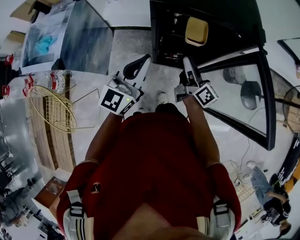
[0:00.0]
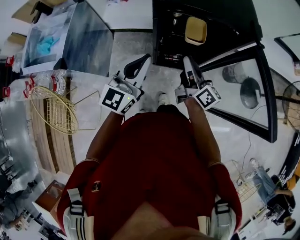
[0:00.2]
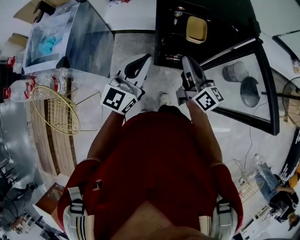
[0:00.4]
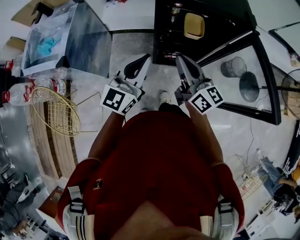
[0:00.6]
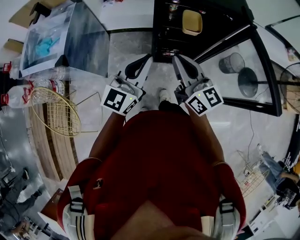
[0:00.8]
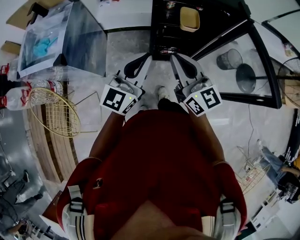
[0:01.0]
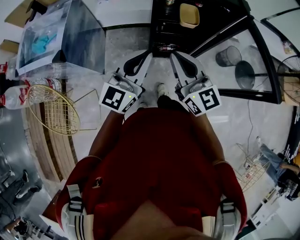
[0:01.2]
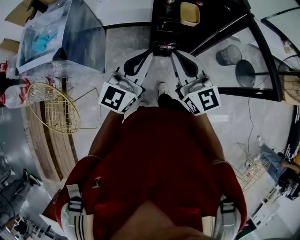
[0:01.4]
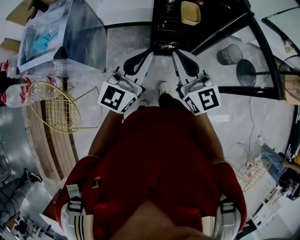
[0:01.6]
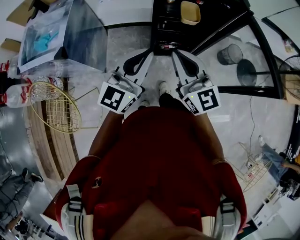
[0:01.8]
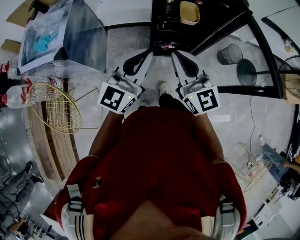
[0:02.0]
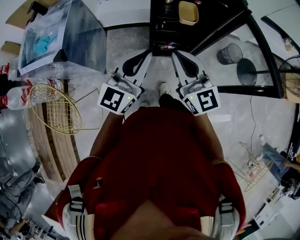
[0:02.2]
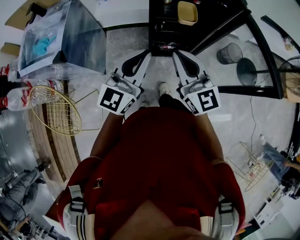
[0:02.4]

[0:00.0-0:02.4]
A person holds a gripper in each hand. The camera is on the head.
0:00.0 to 0:01.2: The right gripper heads backward, upward and to the left, covering some 25 cm, rolls counterclockwise, seen from behind, by approximately 50 degrees, and closes. The left gripper moves backward, about 10 cm.
0:01.2 to 0:02.4: The grippers move only a little.

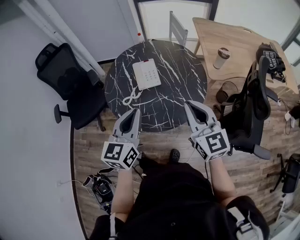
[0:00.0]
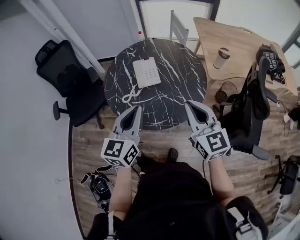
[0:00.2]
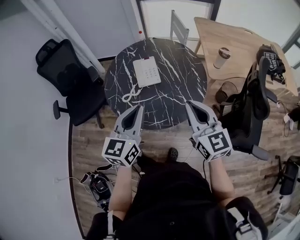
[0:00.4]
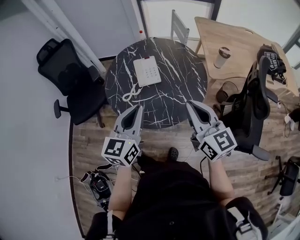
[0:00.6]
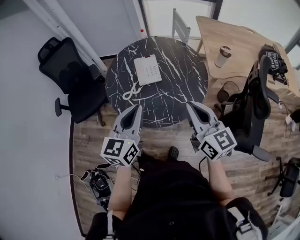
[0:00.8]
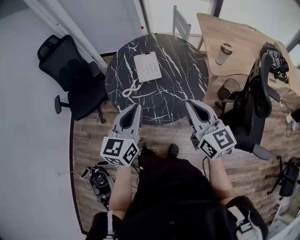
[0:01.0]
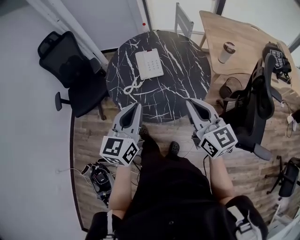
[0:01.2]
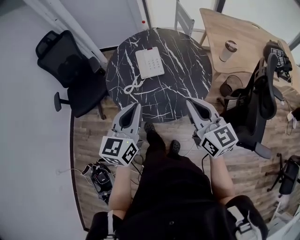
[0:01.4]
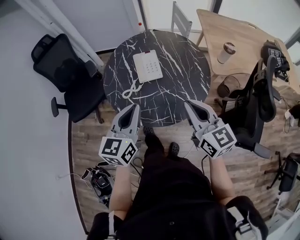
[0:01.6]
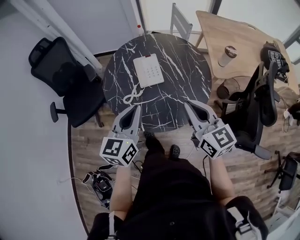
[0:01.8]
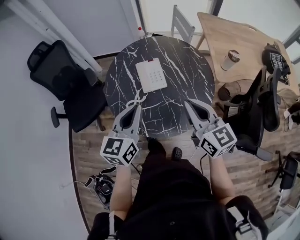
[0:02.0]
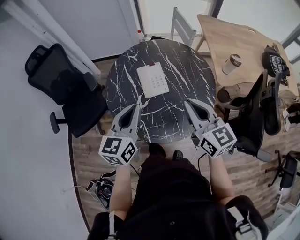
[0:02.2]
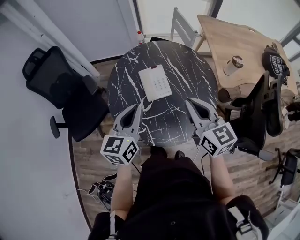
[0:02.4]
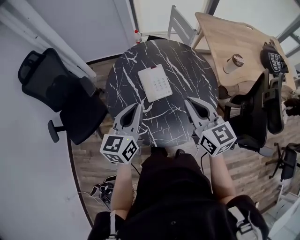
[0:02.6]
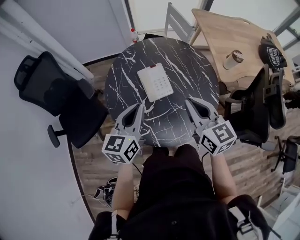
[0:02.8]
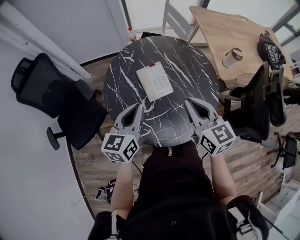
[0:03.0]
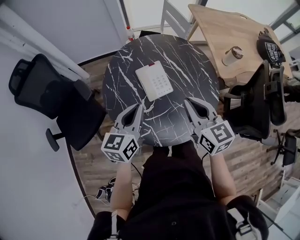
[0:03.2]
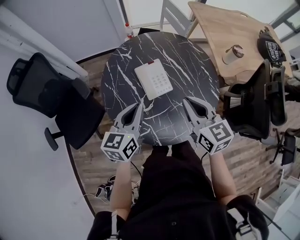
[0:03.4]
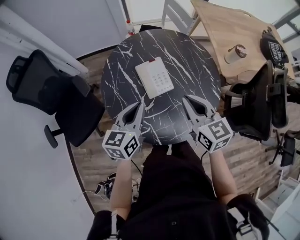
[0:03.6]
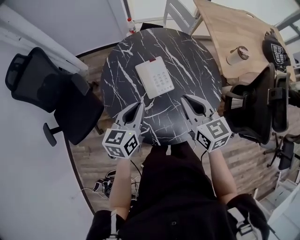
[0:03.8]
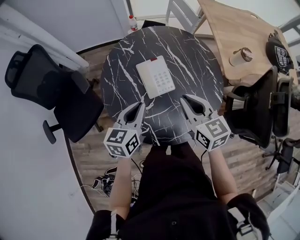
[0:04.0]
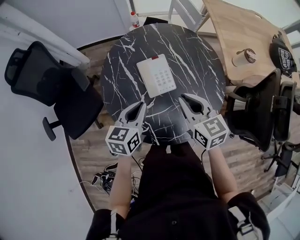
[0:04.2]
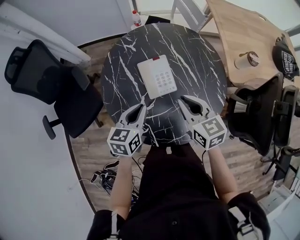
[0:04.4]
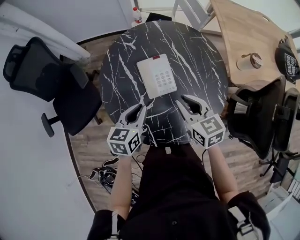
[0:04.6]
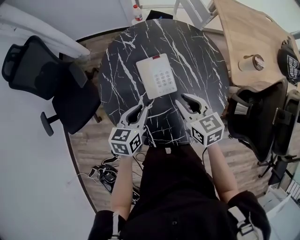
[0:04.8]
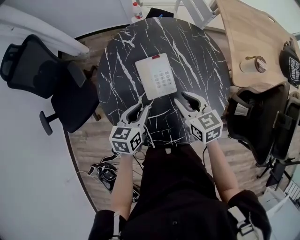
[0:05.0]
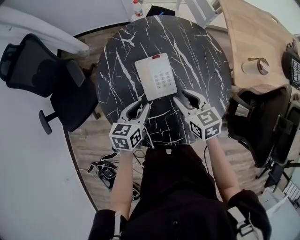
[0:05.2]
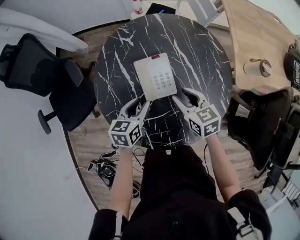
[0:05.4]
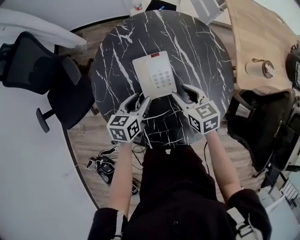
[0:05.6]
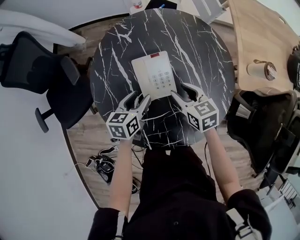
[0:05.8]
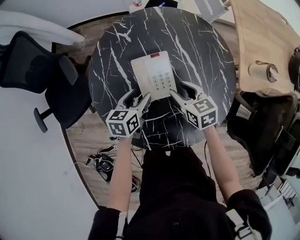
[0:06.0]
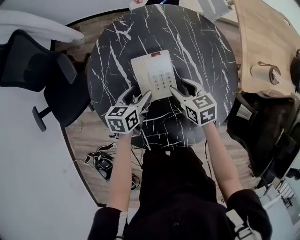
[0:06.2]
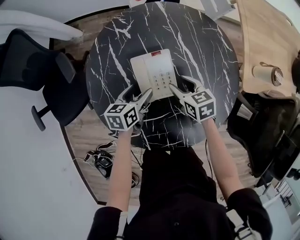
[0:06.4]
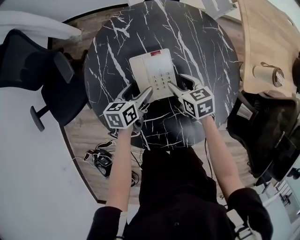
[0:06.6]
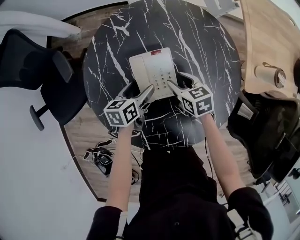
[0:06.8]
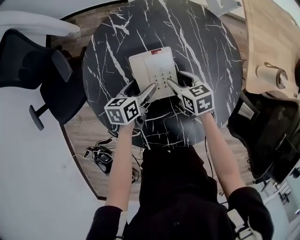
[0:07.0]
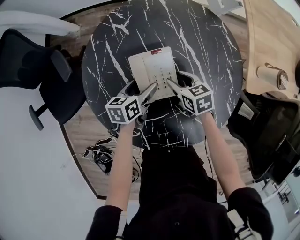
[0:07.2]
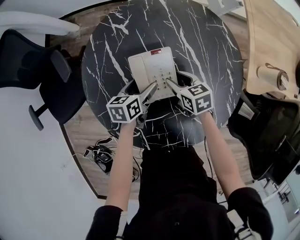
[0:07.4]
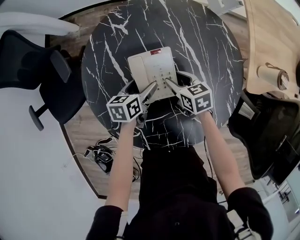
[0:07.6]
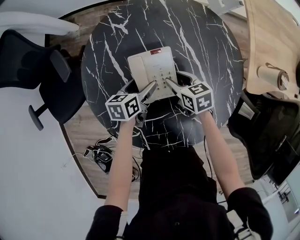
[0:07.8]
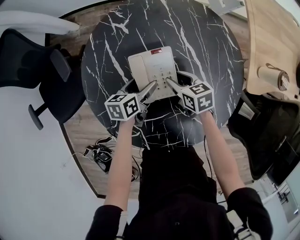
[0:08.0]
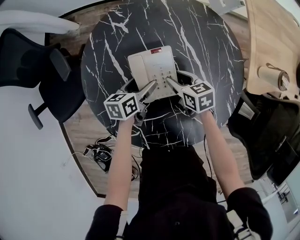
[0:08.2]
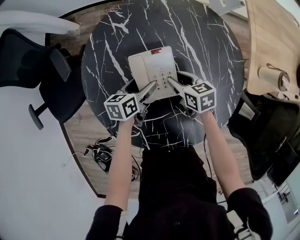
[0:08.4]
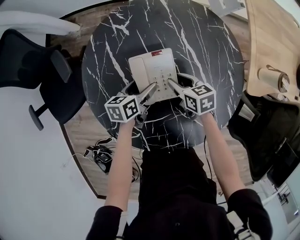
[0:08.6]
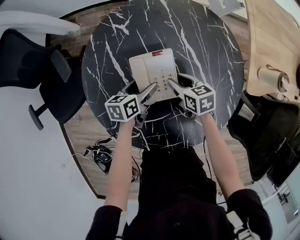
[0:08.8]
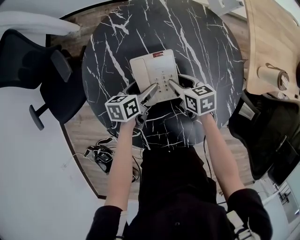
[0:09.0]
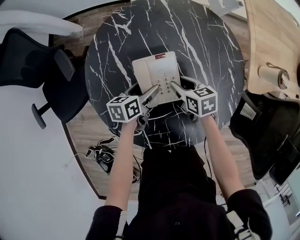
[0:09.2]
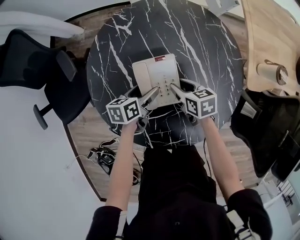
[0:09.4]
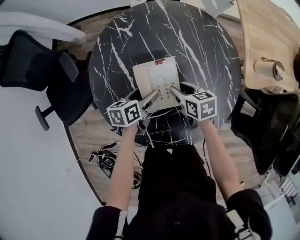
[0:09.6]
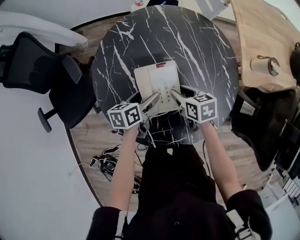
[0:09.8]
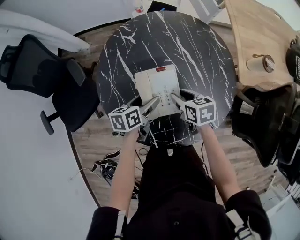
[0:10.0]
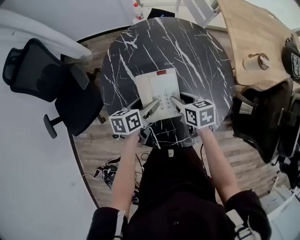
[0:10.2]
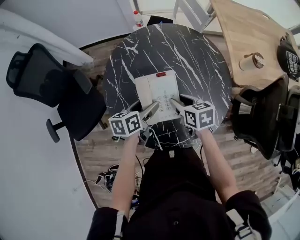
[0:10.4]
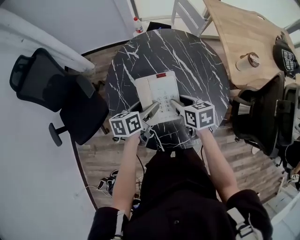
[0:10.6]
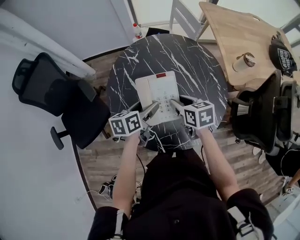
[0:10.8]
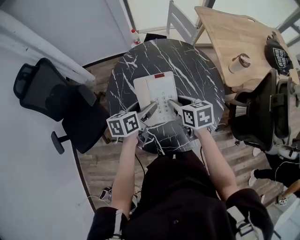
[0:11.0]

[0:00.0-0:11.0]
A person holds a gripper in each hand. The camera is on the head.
0:00.0 to 0:01.6: There are only small adjustments of the grippers.
0:01.6 to 0:03.2: Both grippers travel together forward and to the left, about 20 cm.
0:03.2 to 0:04.8: The right gripper shifts approximately 15 cm downward and forward, and swivels about 20 degrees. Meanwhile the left gripper moves downward, roughly 15 cm, and changes its angle by some 20 degrees.
0:04.8 to 0:06.2: The grippers both shift downward and forward by approximately 15 cm. The right gripper opens up. The left gripper opens its fingers.
0:06.2 to 0:07.8: The two grippers go about 5 cm downward.
0:07.8 to 0:09.4: The grippers make only small movements.
0:09.4 to 0:11.0: Both grippers travel together upward, about 20 cm.

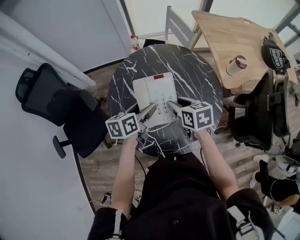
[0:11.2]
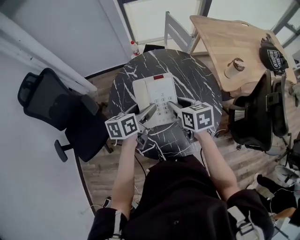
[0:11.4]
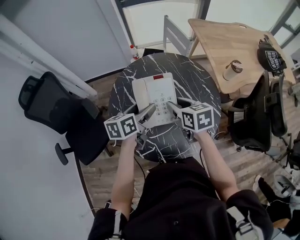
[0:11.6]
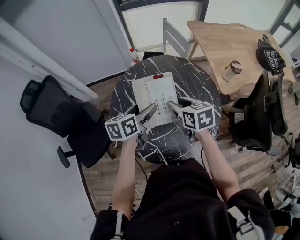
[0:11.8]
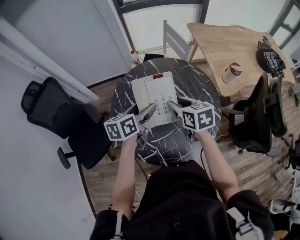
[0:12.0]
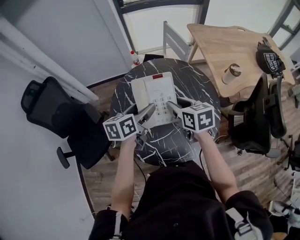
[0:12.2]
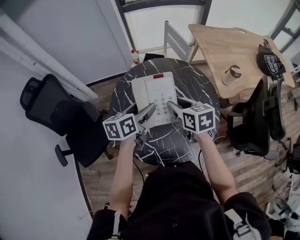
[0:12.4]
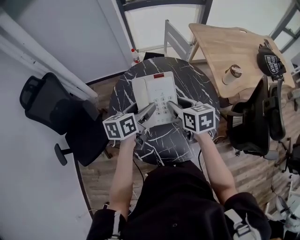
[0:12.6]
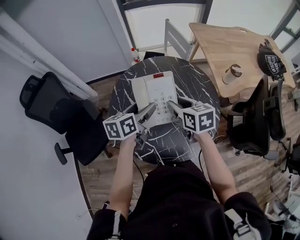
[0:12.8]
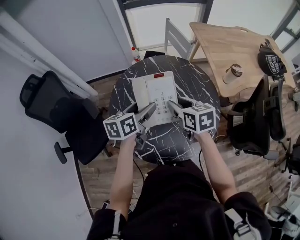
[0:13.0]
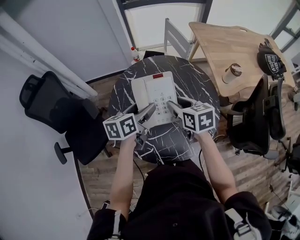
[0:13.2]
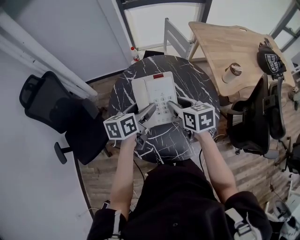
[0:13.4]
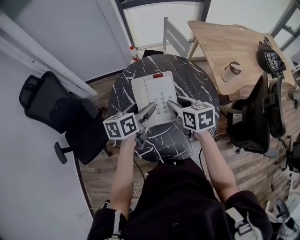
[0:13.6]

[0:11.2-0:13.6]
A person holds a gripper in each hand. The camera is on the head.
0:11.2 to 0:12.4: Both grippers travel together upward, about 5 cm.
0:12.4 to 0:13.6: The grippers move only a little.

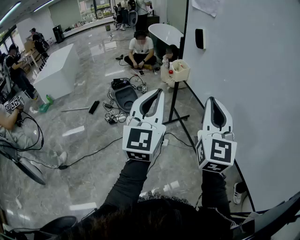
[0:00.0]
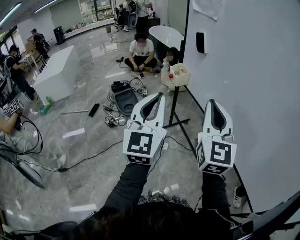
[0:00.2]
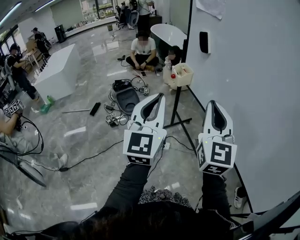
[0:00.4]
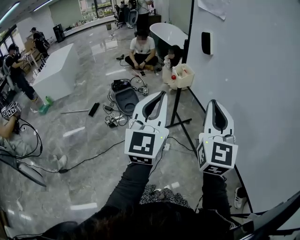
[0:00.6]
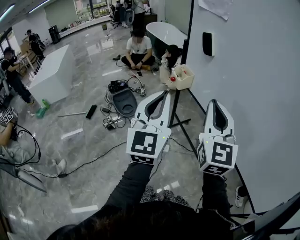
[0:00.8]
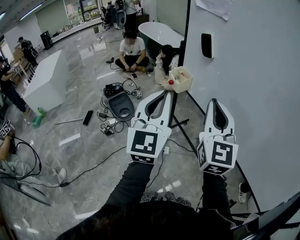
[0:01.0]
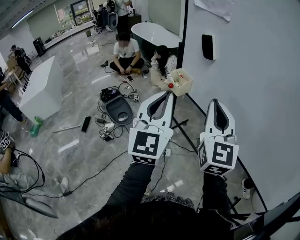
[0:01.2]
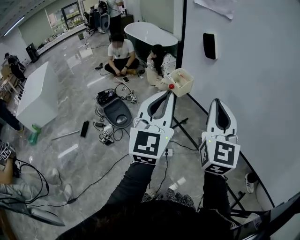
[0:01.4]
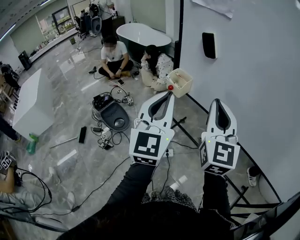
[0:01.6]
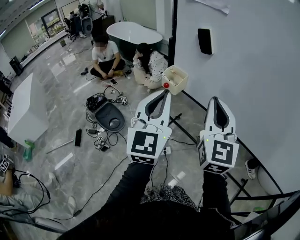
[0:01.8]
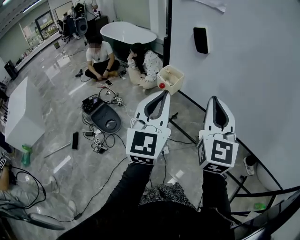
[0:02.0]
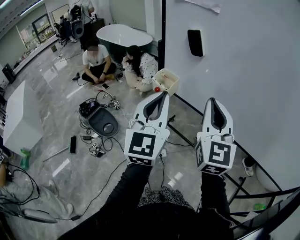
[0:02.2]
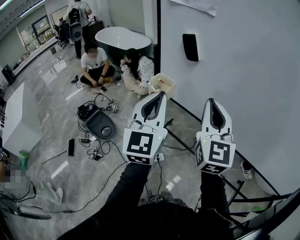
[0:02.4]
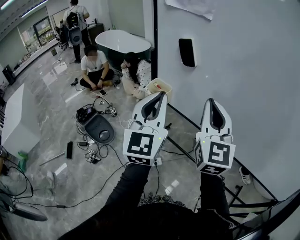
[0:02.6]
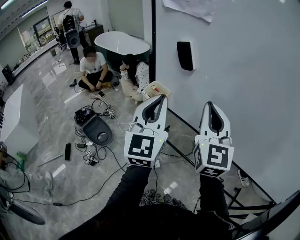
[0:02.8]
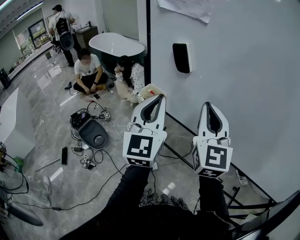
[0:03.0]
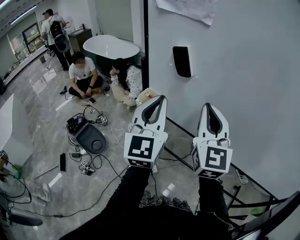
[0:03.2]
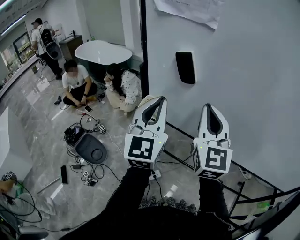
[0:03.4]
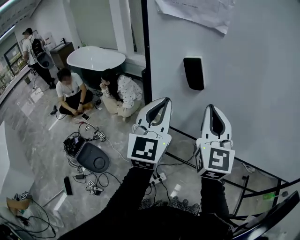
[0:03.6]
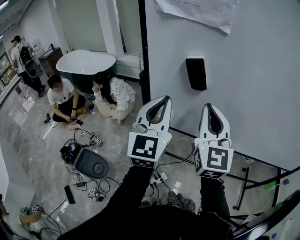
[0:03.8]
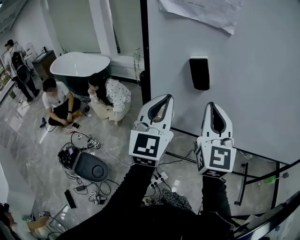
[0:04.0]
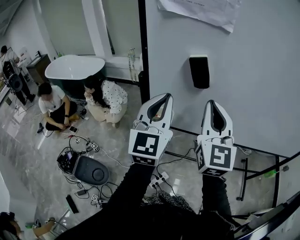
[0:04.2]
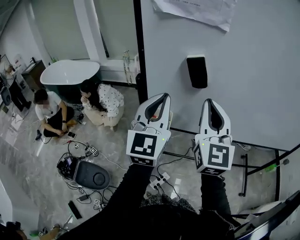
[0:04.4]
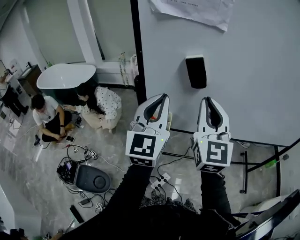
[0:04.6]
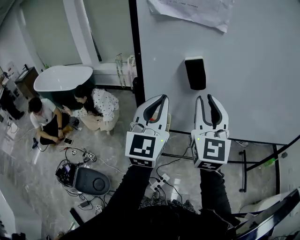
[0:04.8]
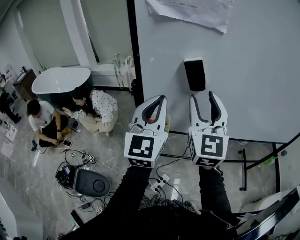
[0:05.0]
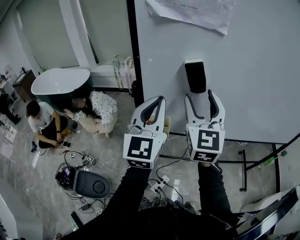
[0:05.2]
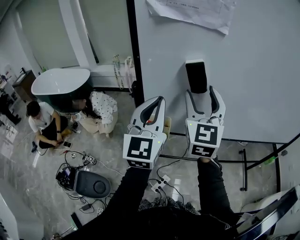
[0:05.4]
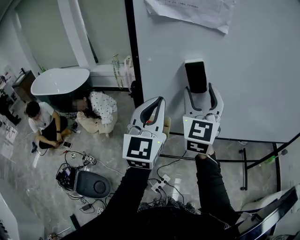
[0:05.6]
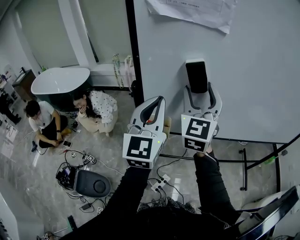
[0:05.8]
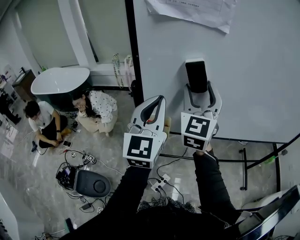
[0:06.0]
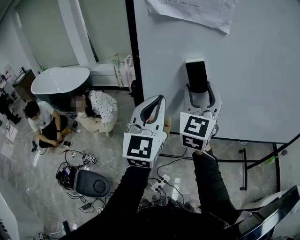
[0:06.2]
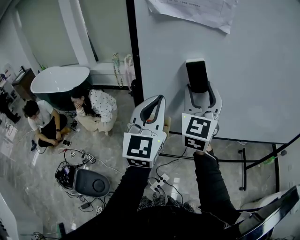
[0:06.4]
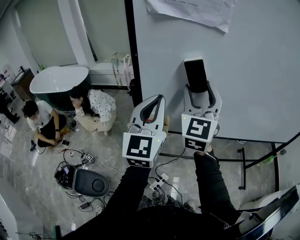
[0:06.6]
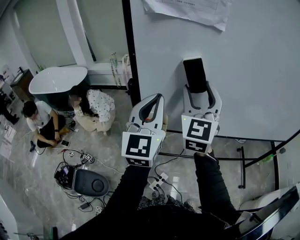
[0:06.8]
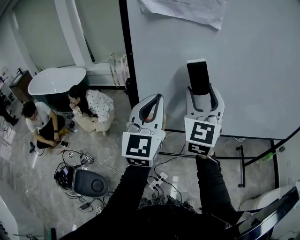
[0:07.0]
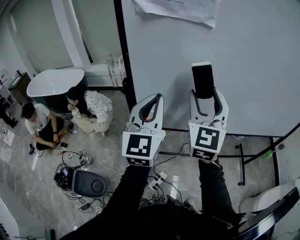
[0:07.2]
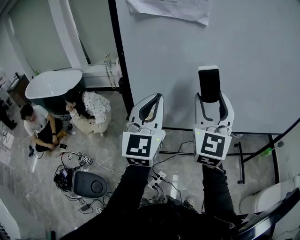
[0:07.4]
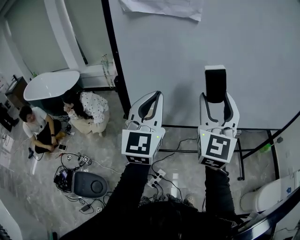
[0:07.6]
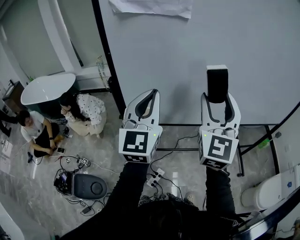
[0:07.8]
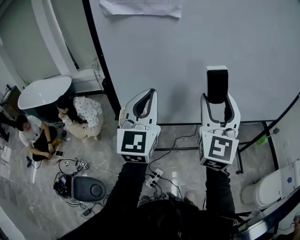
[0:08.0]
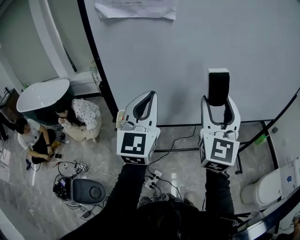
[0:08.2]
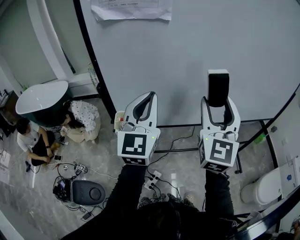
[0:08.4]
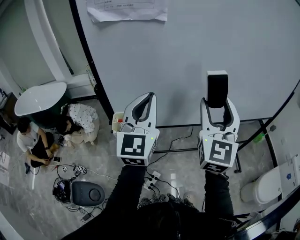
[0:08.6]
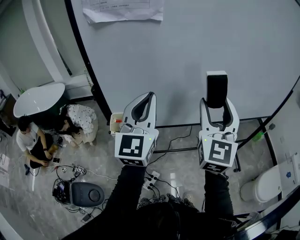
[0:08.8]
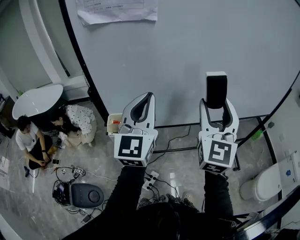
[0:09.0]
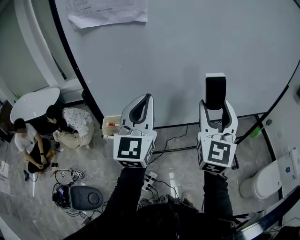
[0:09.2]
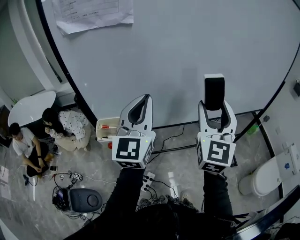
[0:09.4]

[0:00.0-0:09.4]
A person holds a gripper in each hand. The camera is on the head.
0:00.0 to 0:01.6: Both grippers move forward and to the left, some 20 cm. The right gripper rotates roughly 20 degrees, while the left gripper swivels roughly 20 degrees.
0:01.6 to 0:03.2: Both grippers move forward, approximately 10 cm.
0:03.2 to 0:04.8: The right gripper changes place by roughly 10 cm, and rotates roughly 30 degrees. Meanwhile the left gripper changes place by some 15 cm, and rotates some 30 degrees.
0:04.8 to 0:06.2: The right gripper travels forward by roughly 5 cm, and opens its fingers.
0:06.2 to 0:07.8: The right gripper travels to the right and backward by approximately 15 cm, while the left gripper travels to the right by roughly 5 cm.
0:07.8 to 0:09.4: The grippers both shift to the right by about 10 cm.
